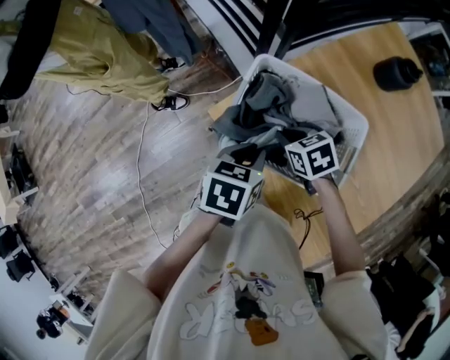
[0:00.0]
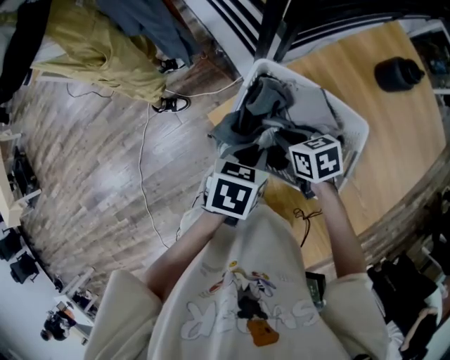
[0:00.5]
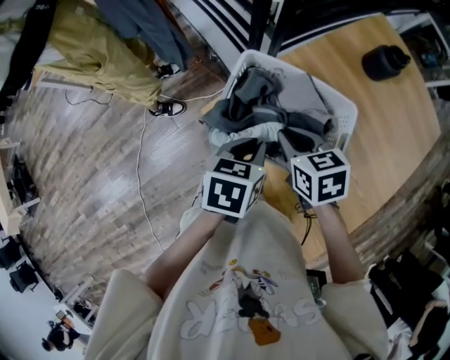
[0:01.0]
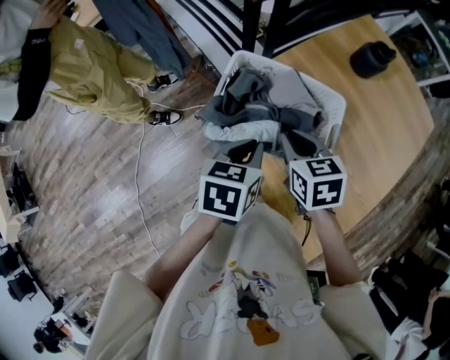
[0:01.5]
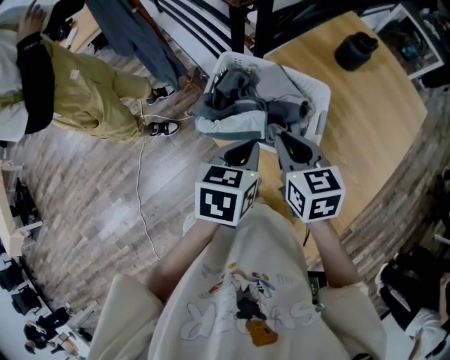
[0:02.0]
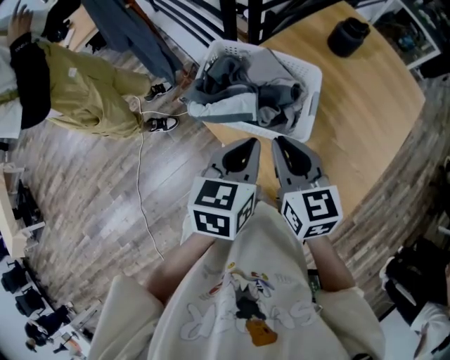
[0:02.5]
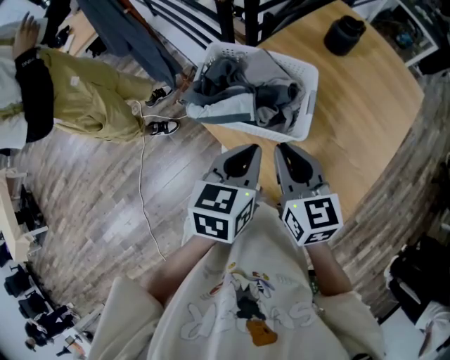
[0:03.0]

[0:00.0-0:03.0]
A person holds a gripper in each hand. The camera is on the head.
0:00.0 to 0:01.5: The right gripper travels upward by approximately 10 cm, and turns by roughly 30 degrees. The left gripper ends up approximately 5 cm from where it was.
0:01.5 to 0:03.0: The left gripper goes approximately 10 cm backward, to the right and upward, while the right gripper is displaced backward and upward by about 15 cm, and rotates some 30 degrees.

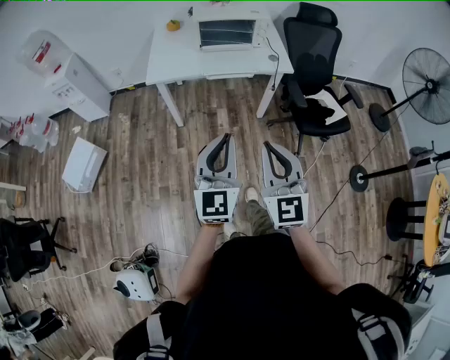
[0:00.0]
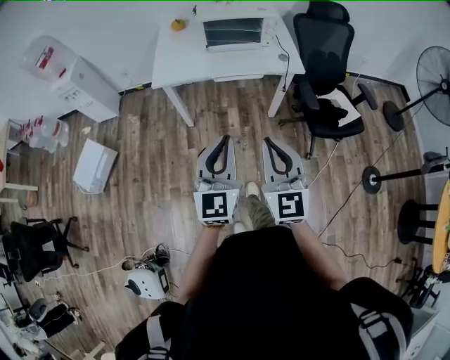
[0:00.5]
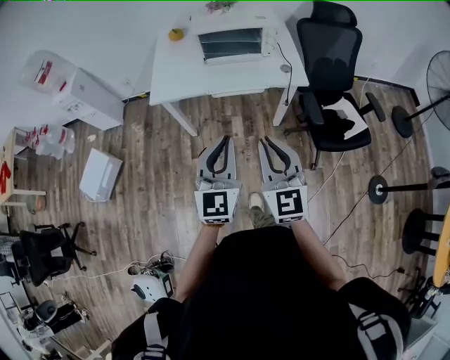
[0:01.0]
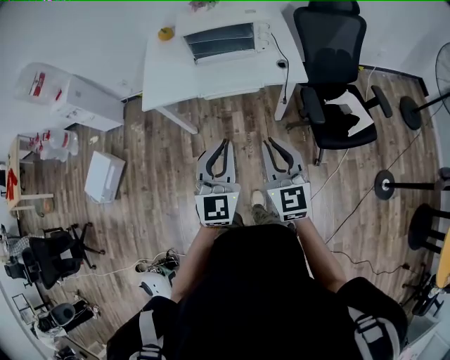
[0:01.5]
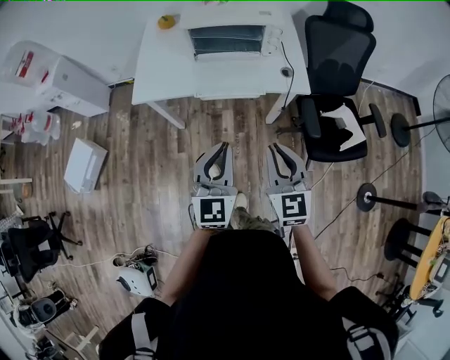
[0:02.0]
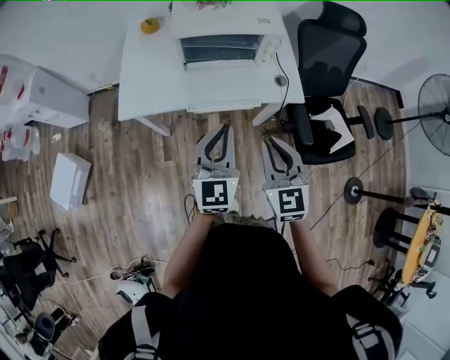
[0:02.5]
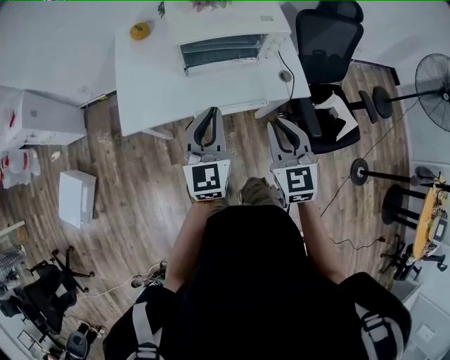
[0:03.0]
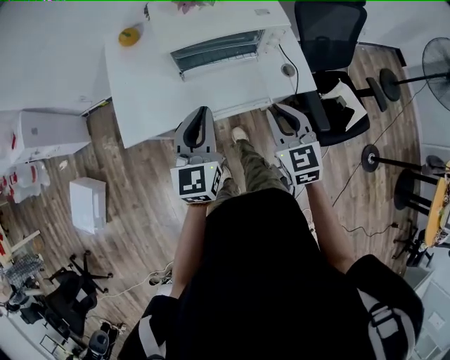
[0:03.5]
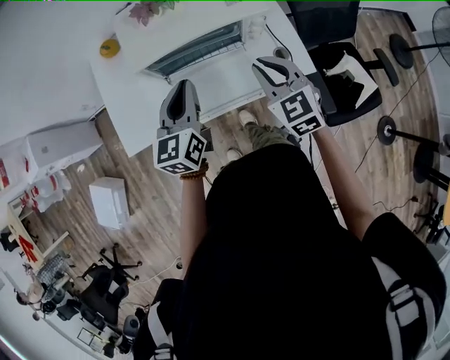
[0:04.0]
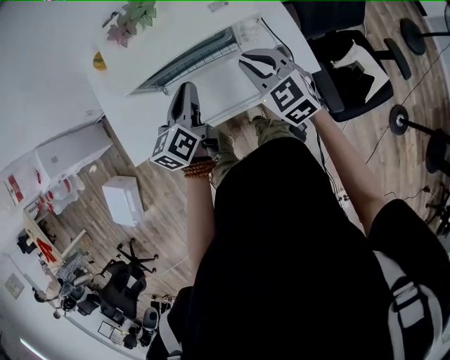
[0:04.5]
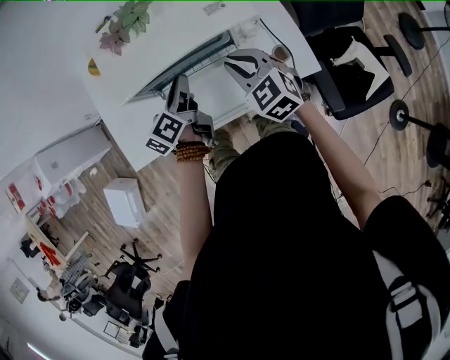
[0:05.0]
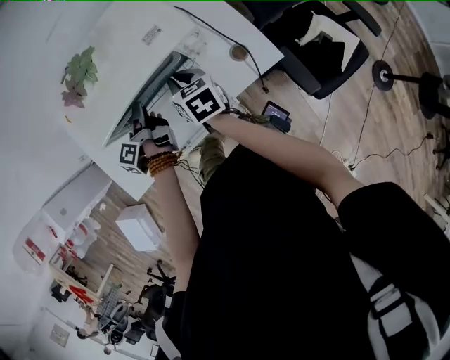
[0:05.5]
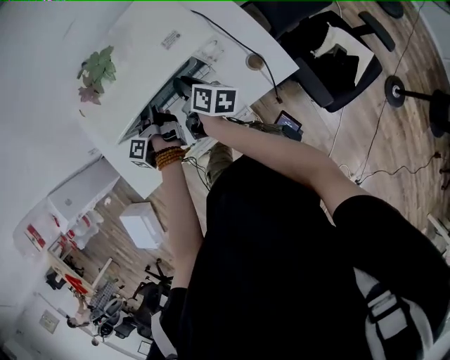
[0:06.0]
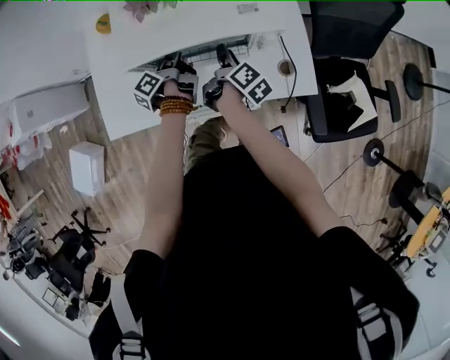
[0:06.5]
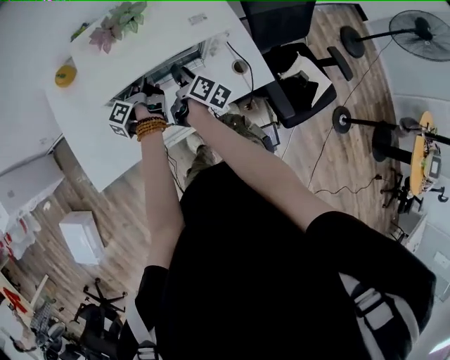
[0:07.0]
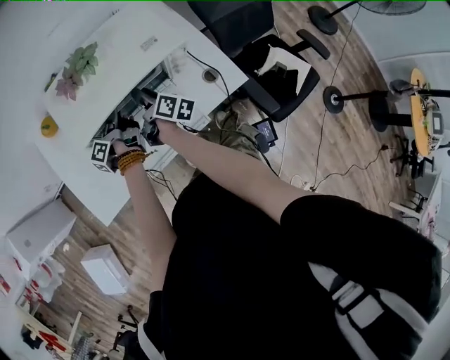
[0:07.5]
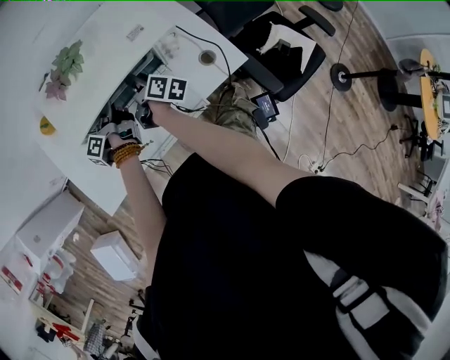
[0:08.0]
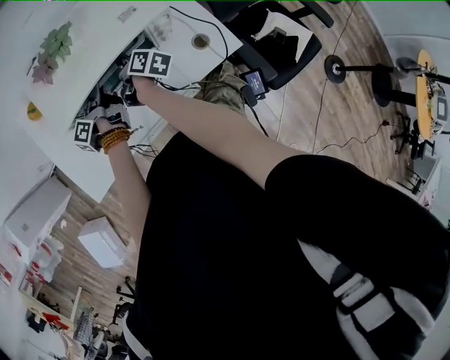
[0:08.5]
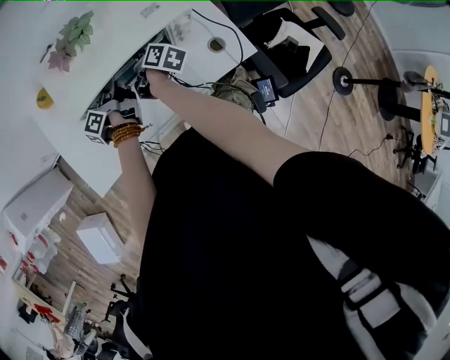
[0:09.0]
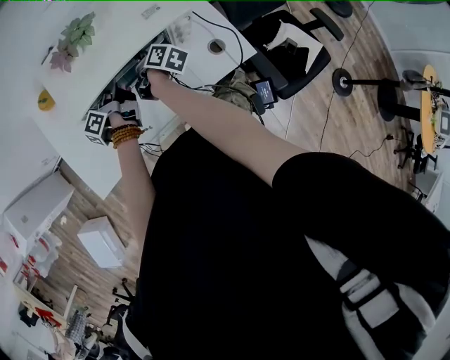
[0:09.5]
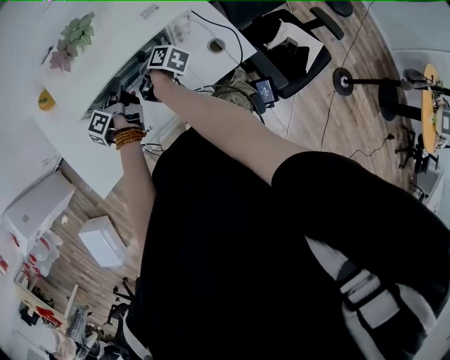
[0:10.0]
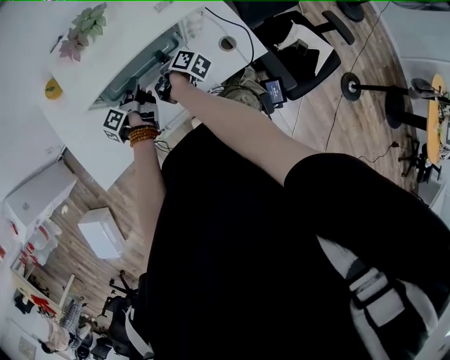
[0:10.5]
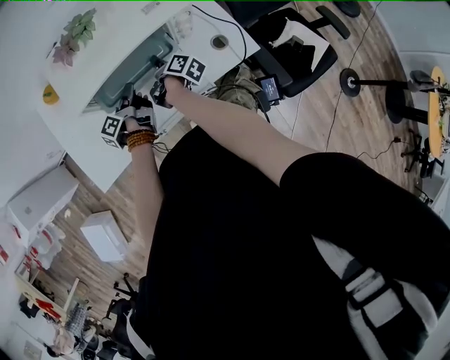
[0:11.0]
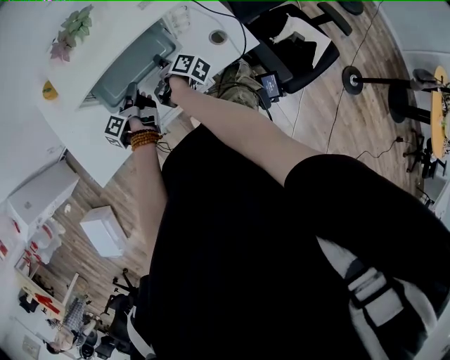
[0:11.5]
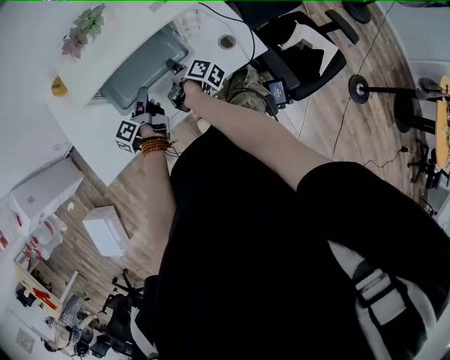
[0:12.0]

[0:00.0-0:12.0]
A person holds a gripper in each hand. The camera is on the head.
0:00.0 to 0:02.0: Both grippers travel together forward, about 30 cm.
0:02.0 to 0:04.0: Both grippers travel together forward, approximately 40 cm. The left gripper turns by about 20 degrees.
0:04.0 to 0:06.0: The right gripper heads forward and downward, covering approximately 20 cm, and twists about 80 degrees clockwise, seen from behind, while the left gripper travels downward and forward by about 25 cm, rolls counterclockwise, seen from behind, by roughly 70 degrees, and opens.
0:06.0 to 0:08.0: The grippers move only a little.
0:08.0 to 0:10.0: The right gripper moves roughly 5 cm.
0:10.0 to 0:12.0: The two grippers go some 10 cm backward.

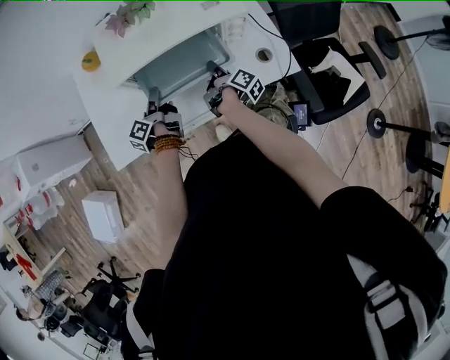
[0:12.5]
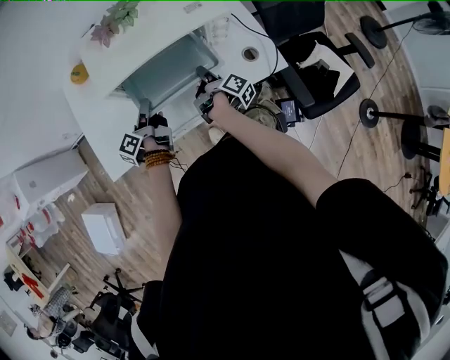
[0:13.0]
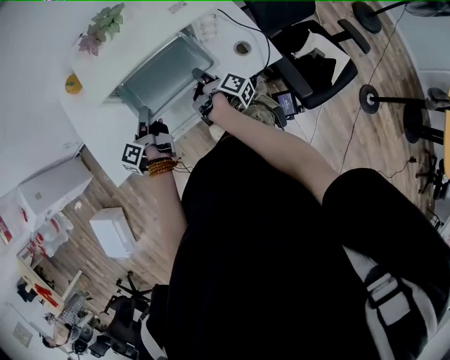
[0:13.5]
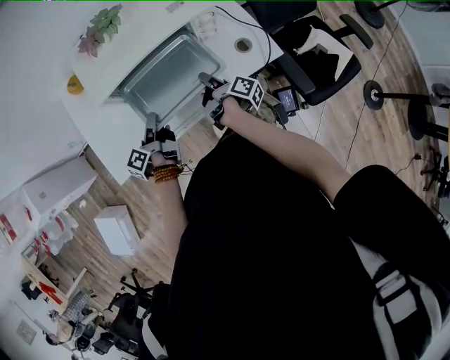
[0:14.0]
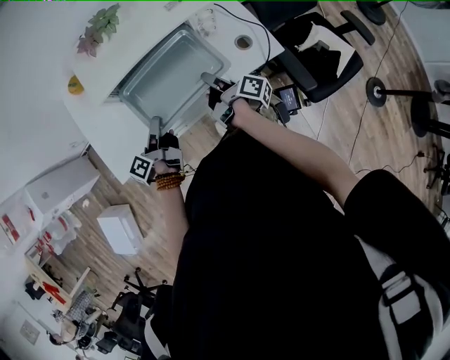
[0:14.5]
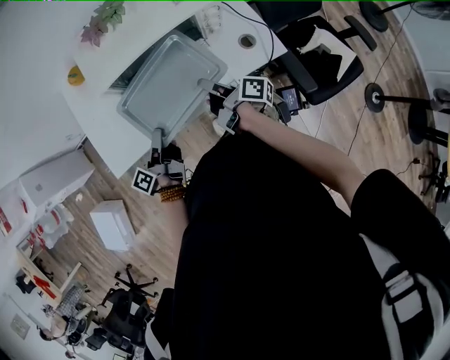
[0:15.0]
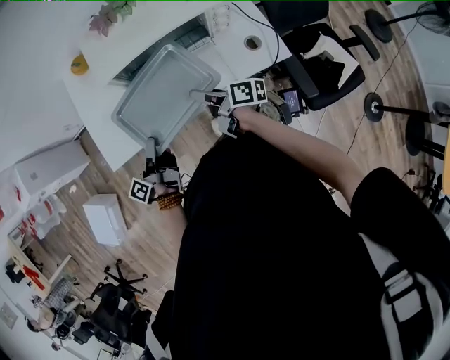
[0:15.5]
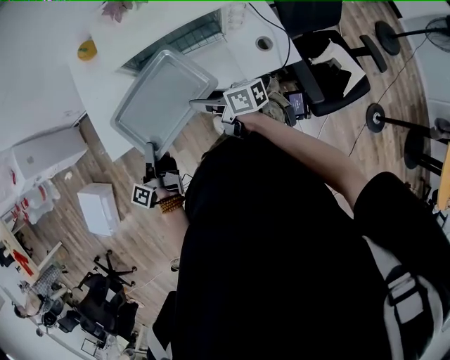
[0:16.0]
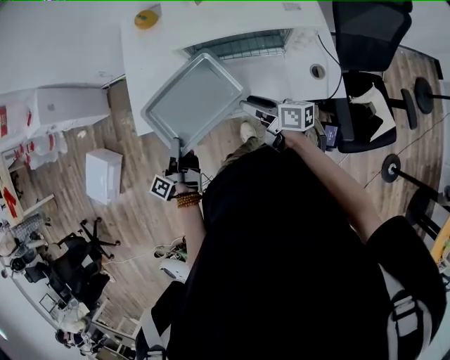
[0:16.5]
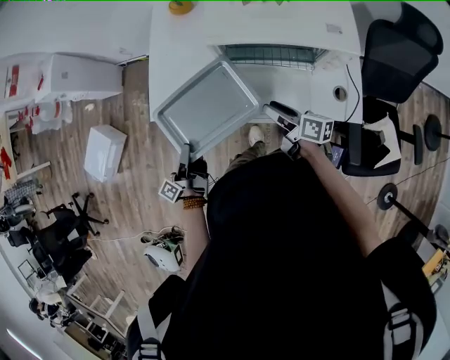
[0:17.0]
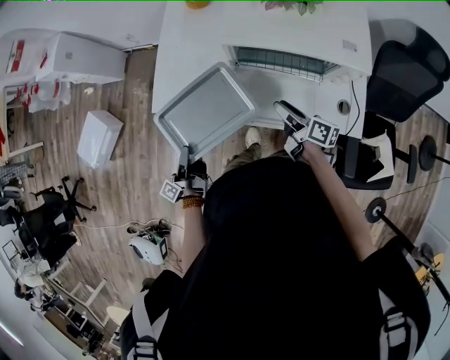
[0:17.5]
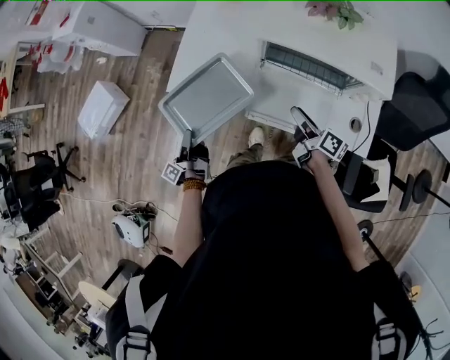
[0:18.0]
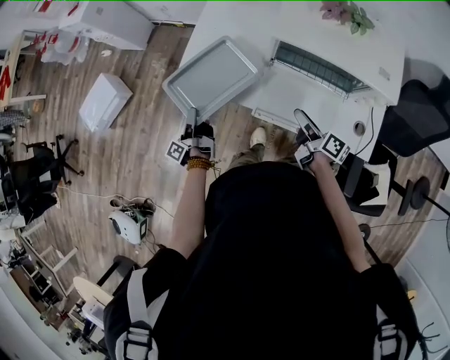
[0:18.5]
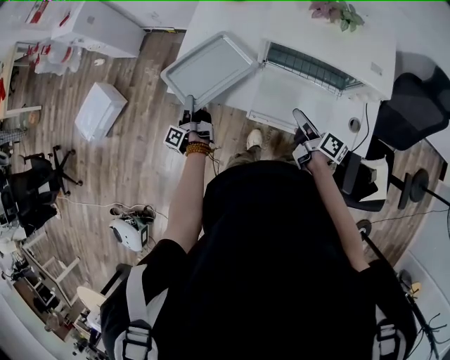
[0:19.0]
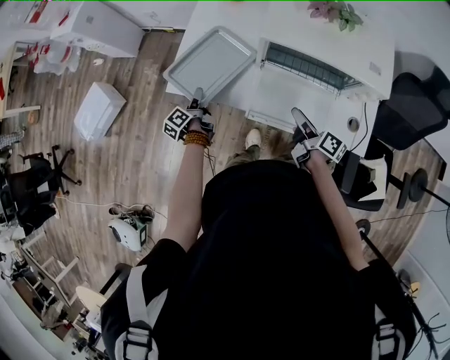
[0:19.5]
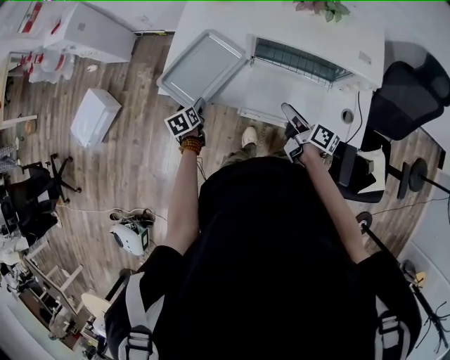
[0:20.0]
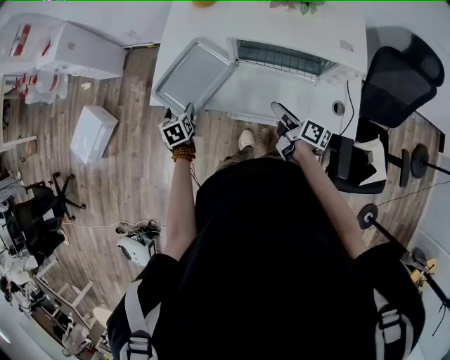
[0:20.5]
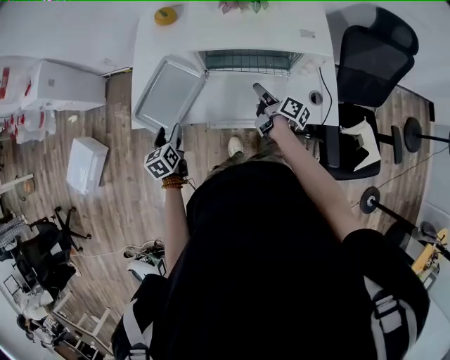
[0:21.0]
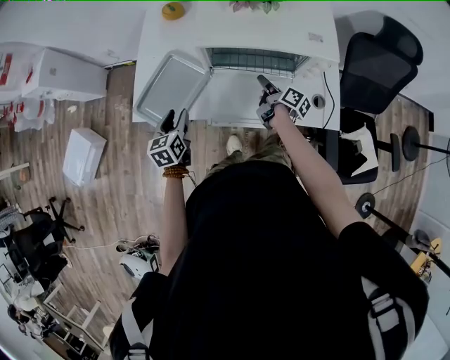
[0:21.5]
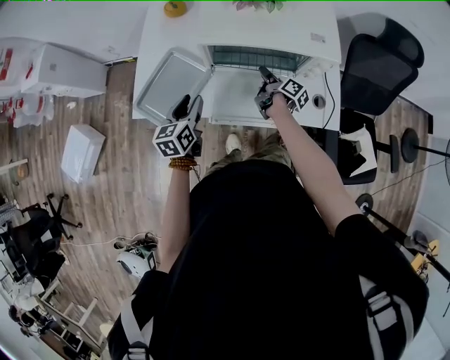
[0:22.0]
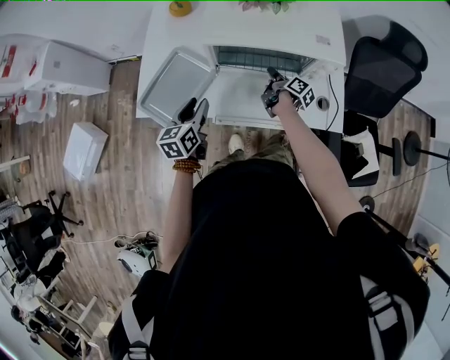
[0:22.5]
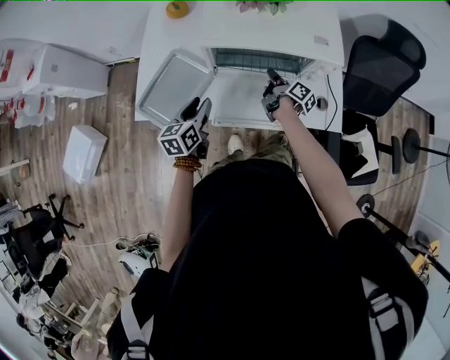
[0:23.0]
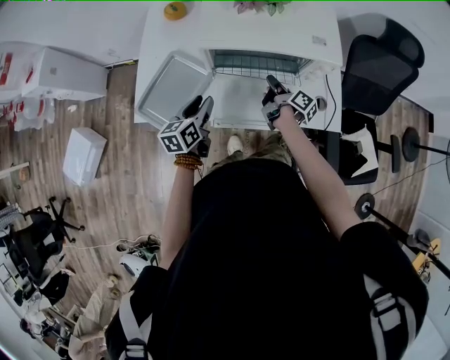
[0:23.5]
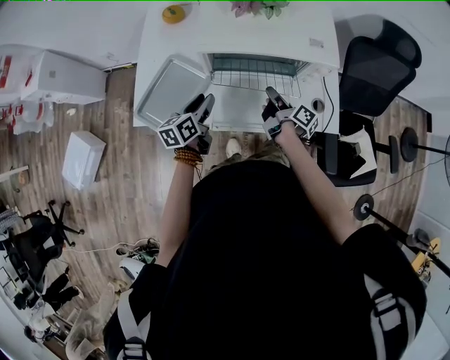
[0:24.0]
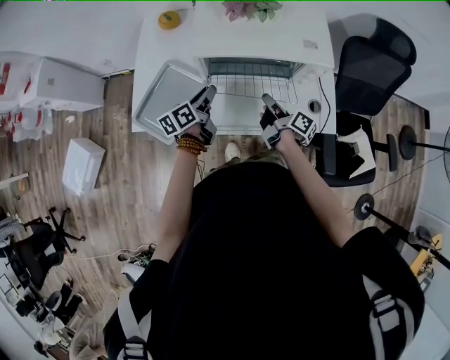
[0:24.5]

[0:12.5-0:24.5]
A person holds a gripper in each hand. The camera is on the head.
0:12.5 to 0:14.5: Both grippers travel together backward, about 10 cm.
0:14.5 to 0:16.5: The right gripper changes place by about 15 cm, rotates roughly 50 degrees, and opens. The left gripper changes place by approximately 20 cm, and swivels about 30 degrees.
0:16.5 to 0:18.5: The left gripper travels to the left and downward by about 15 cm, and rotates approximately 30 degrees.
0:18.5 to 0:20.5: The left gripper goes about 5 cm to the right, rotates around the line of its fingers by approximately 80 degrees, clockwise from behind, and opens.
0:20.5 to 0:22.5: The right gripper shifts by approximately 15 cm, turns by roughly 30 degrees, and closes. The left gripper ends up roughly 20 cm from where it was, swivels roughly 30 degrees, and closes its fingers.
0:22.5 to 0:24.5: The right gripper heads backward and upward, covering roughly 10 cm; the left gripper heads forward, covering roughly 10 cm, and swivels approximately 30 degrees.
